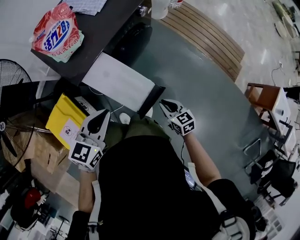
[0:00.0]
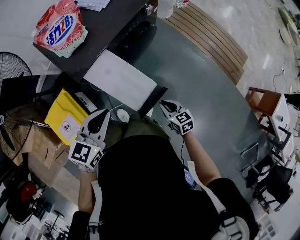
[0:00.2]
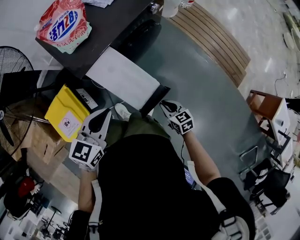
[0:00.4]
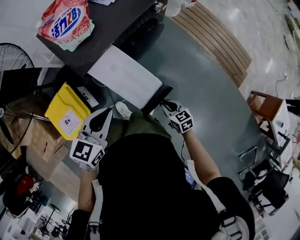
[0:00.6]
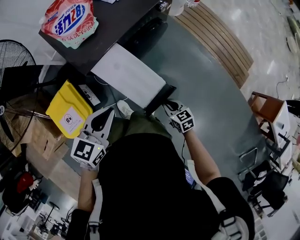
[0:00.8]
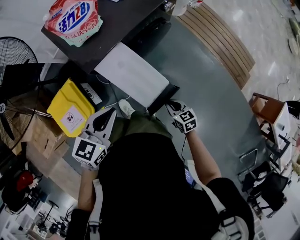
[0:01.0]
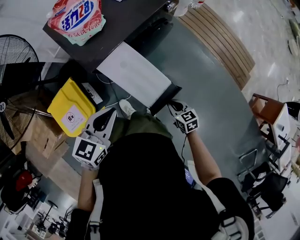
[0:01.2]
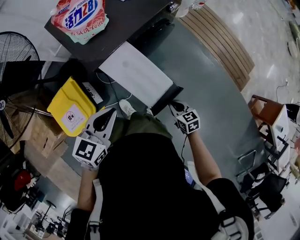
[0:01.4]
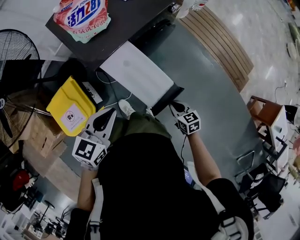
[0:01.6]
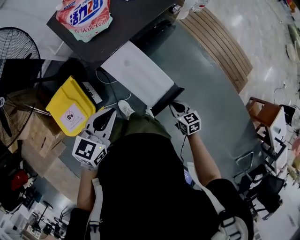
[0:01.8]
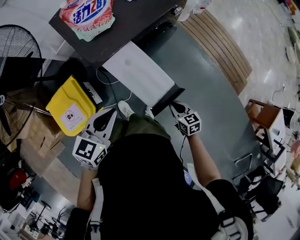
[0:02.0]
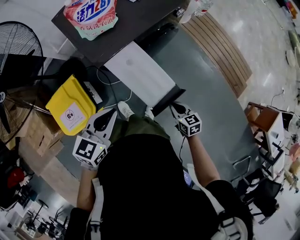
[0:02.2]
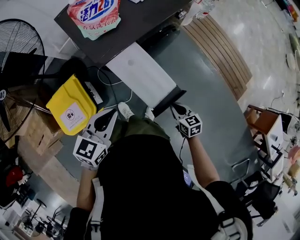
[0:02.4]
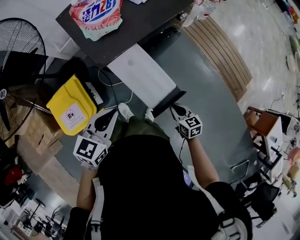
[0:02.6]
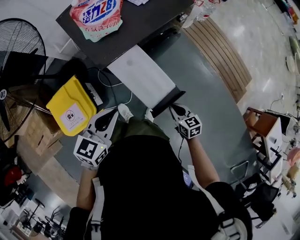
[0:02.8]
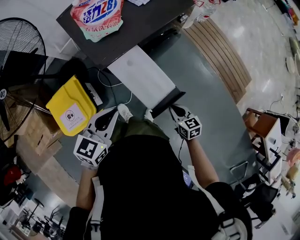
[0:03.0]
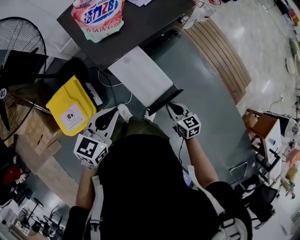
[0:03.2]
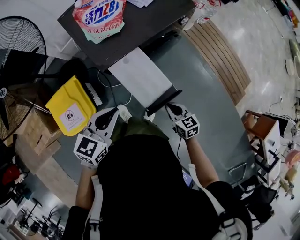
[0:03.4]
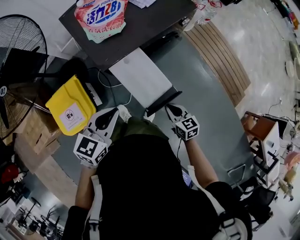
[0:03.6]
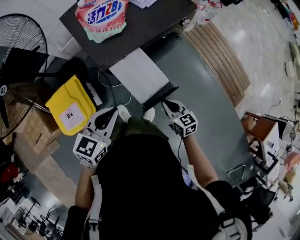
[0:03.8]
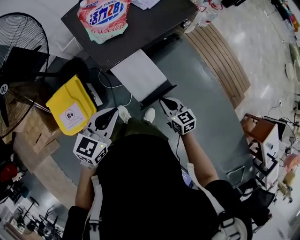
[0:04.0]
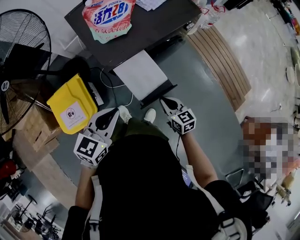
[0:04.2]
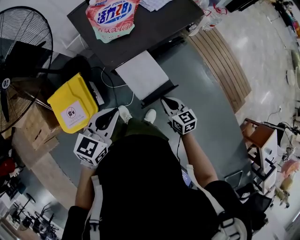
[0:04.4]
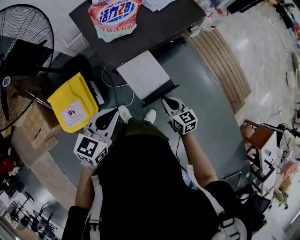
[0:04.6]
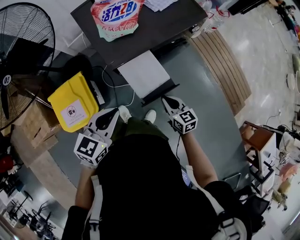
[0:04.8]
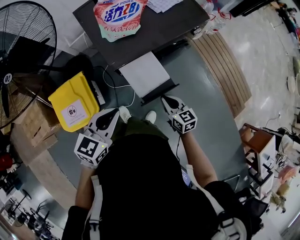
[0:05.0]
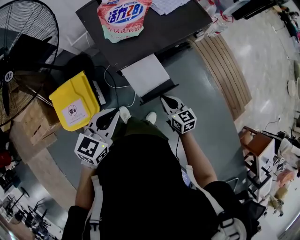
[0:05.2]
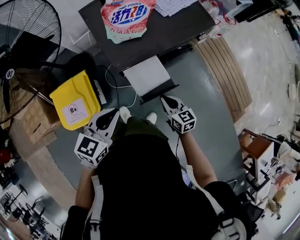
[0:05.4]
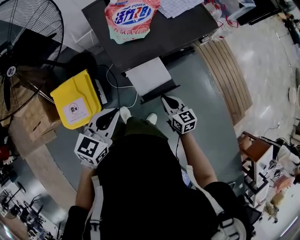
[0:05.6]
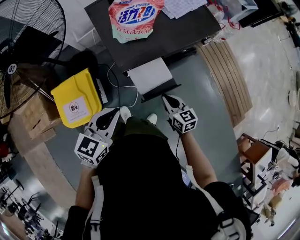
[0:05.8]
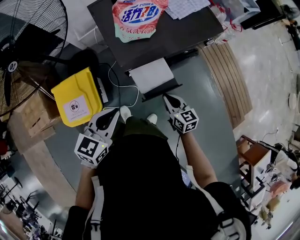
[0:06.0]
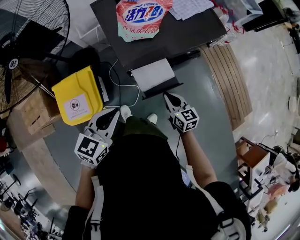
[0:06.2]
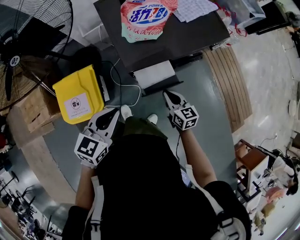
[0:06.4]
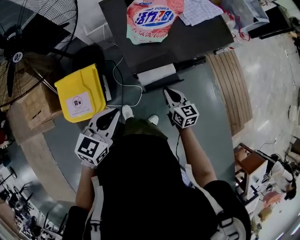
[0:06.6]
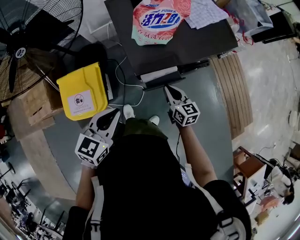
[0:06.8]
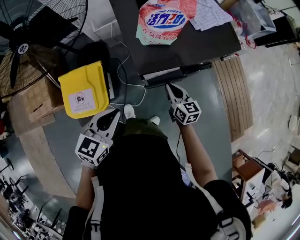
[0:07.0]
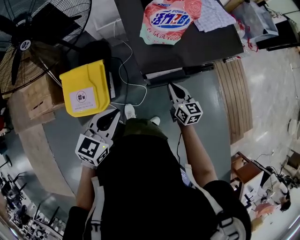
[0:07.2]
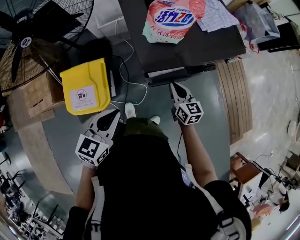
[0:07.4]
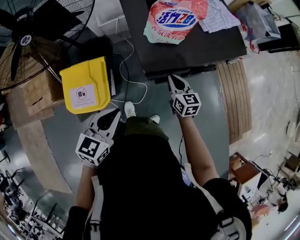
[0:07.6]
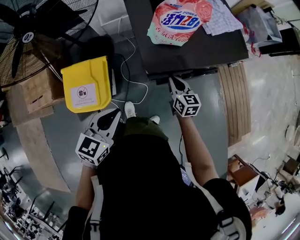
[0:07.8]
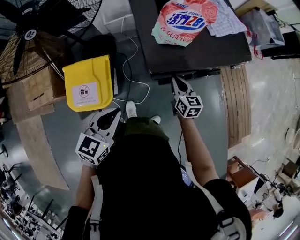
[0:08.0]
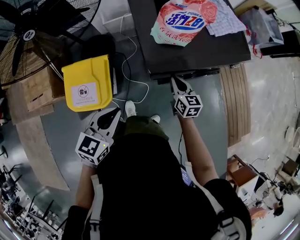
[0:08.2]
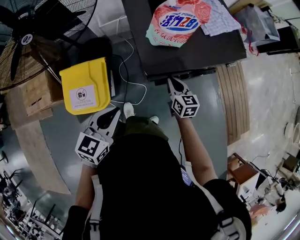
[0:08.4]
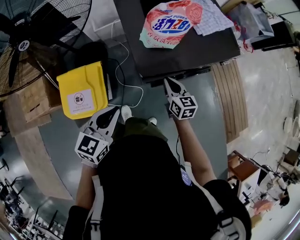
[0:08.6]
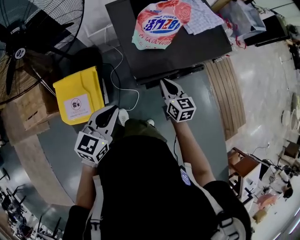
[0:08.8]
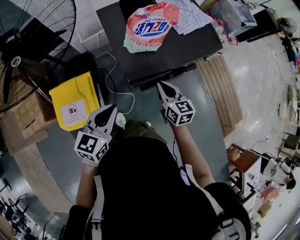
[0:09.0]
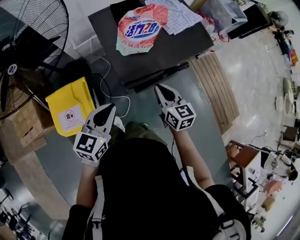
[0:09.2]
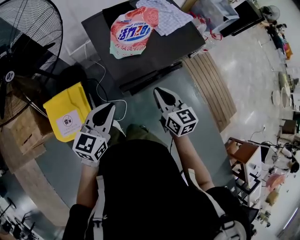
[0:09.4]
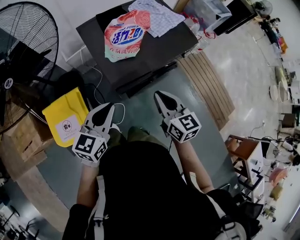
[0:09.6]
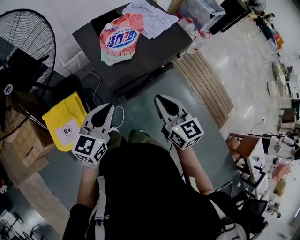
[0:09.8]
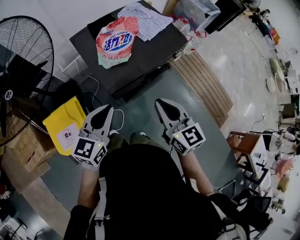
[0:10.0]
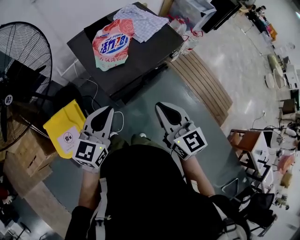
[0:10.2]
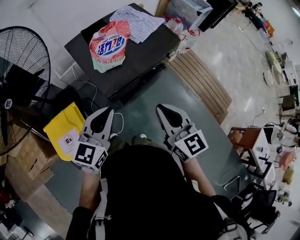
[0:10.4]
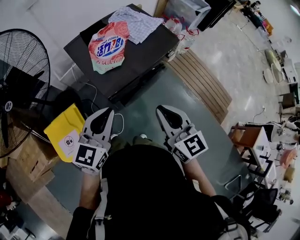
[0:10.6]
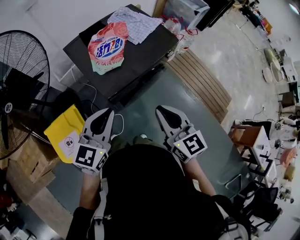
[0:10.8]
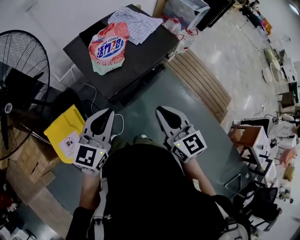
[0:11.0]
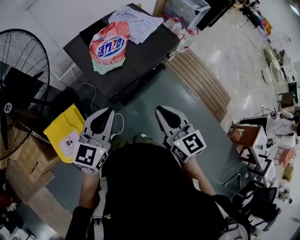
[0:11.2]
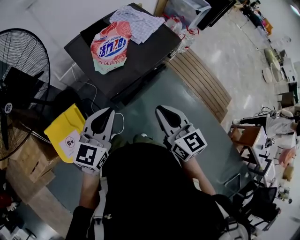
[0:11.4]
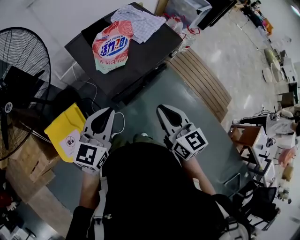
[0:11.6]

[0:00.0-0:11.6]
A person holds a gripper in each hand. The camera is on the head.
0:00.0 to 0:01.4: The right gripper is displaced downward by approximately 5 cm. The left gripper goes about 5 cm to the left.
0:01.4 to 0:02.8: There are only small adjustments of the grippers.
0:02.8 to 0:04.4: The right gripper goes approximately 10 cm forward and to the left.
0:04.4 to 0:05.8: The right gripper goes roughly 5 cm forward.
0:05.8 to 0:07.2: The right gripper travels forward and to the left by about 10 cm. The left gripper heads to the left, covering about 5 cm.
0:07.2 to 0:08.8: The right gripper changes place by approximately 5 cm.
0:08.8 to 0:10.2: The right gripper moves upward and backward, about 25 cm. The left gripper goes approximately 10 cm upward and to the right.
0:10.2 to 0:11.6: The grippers make only small movements.

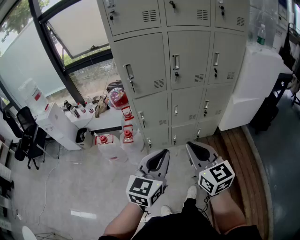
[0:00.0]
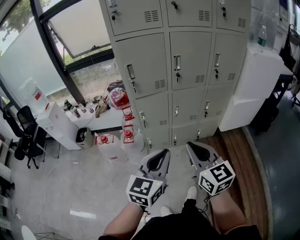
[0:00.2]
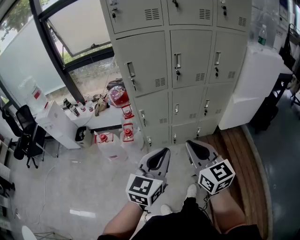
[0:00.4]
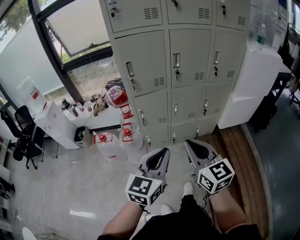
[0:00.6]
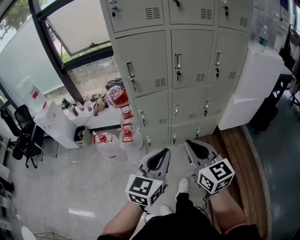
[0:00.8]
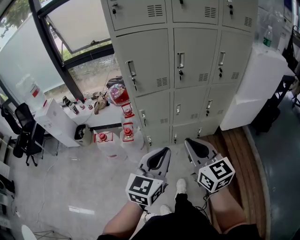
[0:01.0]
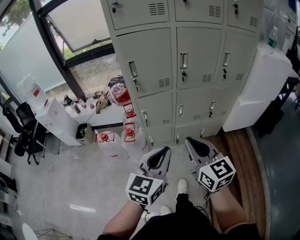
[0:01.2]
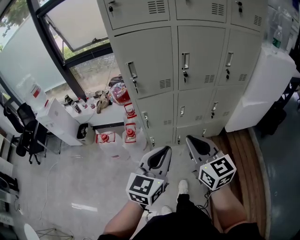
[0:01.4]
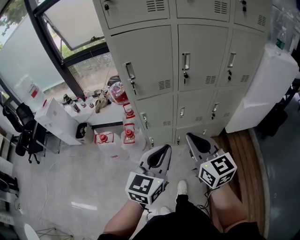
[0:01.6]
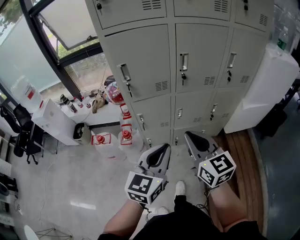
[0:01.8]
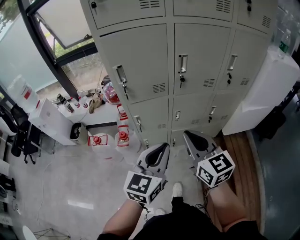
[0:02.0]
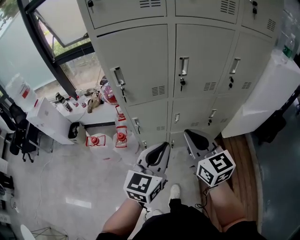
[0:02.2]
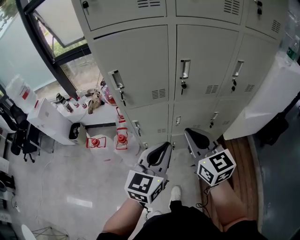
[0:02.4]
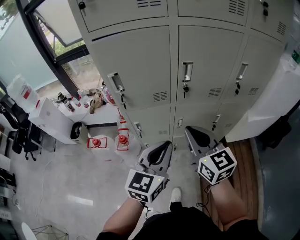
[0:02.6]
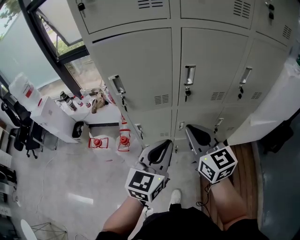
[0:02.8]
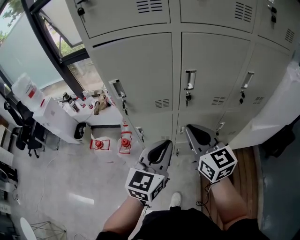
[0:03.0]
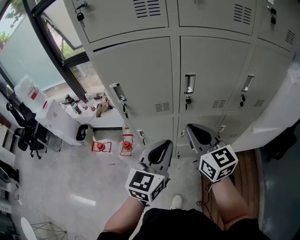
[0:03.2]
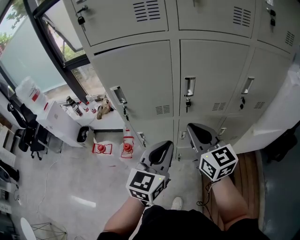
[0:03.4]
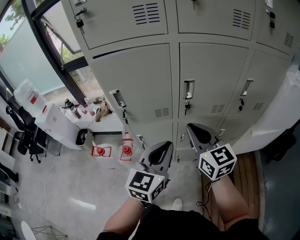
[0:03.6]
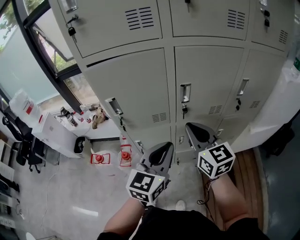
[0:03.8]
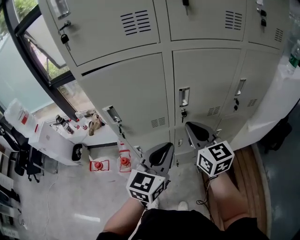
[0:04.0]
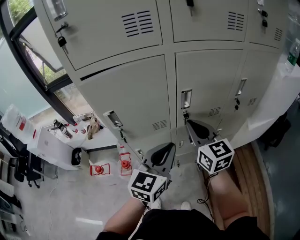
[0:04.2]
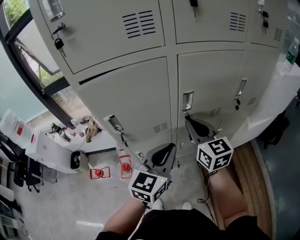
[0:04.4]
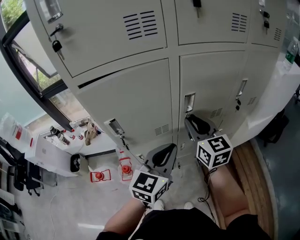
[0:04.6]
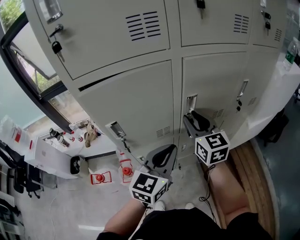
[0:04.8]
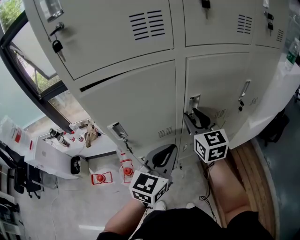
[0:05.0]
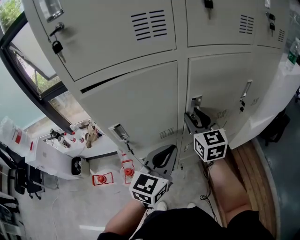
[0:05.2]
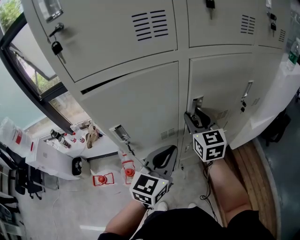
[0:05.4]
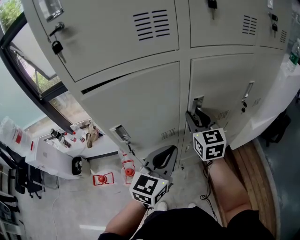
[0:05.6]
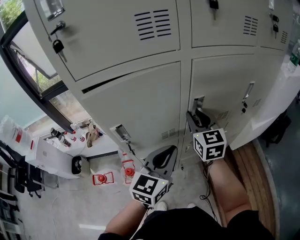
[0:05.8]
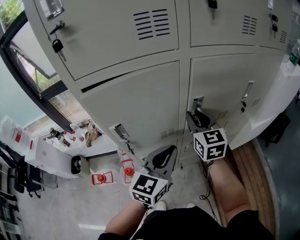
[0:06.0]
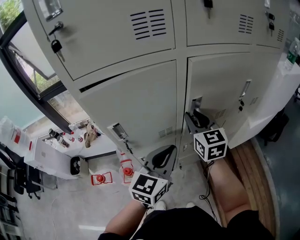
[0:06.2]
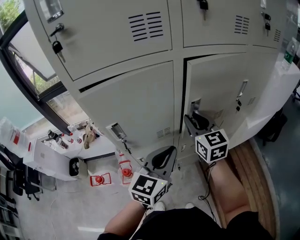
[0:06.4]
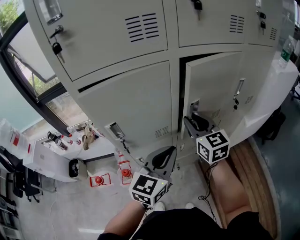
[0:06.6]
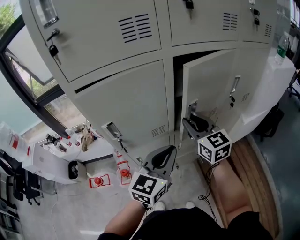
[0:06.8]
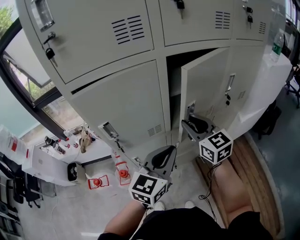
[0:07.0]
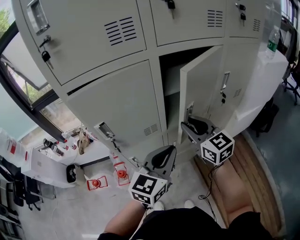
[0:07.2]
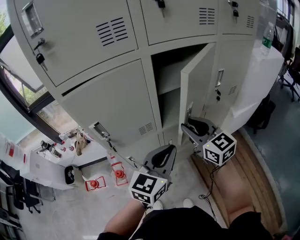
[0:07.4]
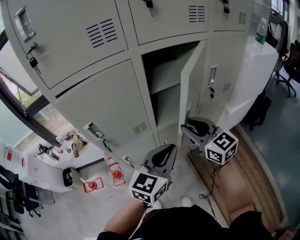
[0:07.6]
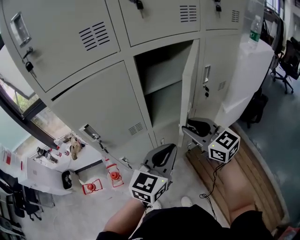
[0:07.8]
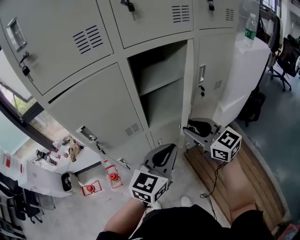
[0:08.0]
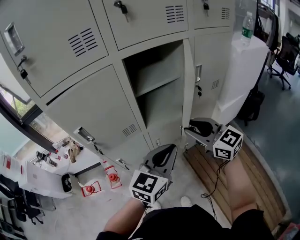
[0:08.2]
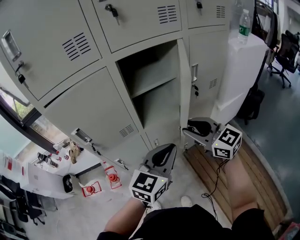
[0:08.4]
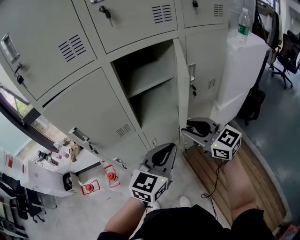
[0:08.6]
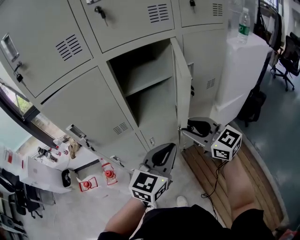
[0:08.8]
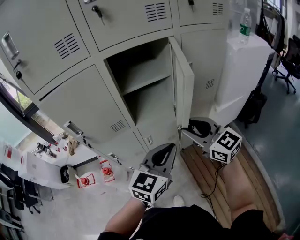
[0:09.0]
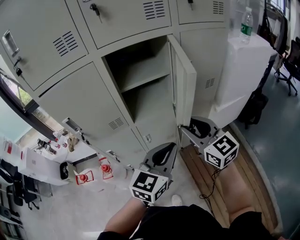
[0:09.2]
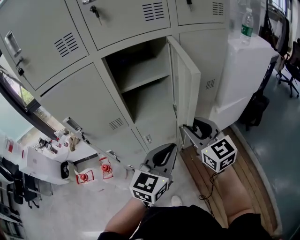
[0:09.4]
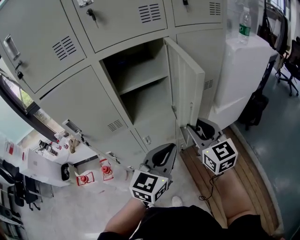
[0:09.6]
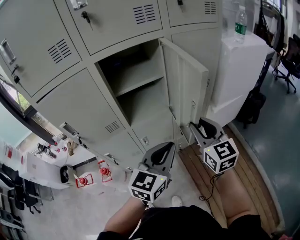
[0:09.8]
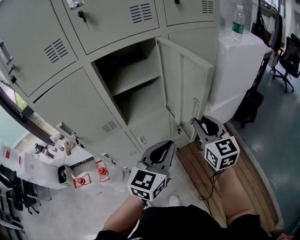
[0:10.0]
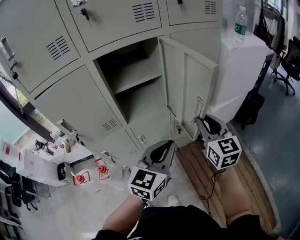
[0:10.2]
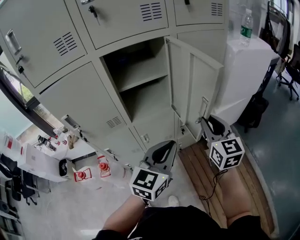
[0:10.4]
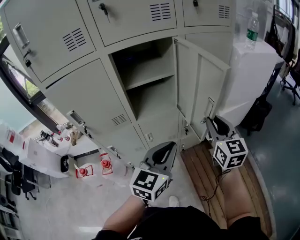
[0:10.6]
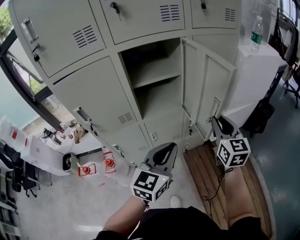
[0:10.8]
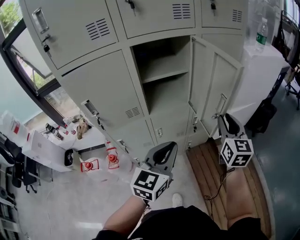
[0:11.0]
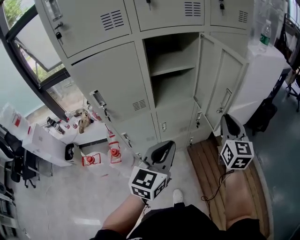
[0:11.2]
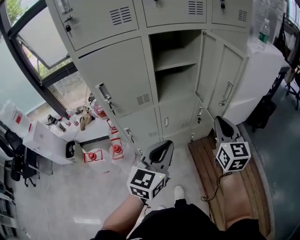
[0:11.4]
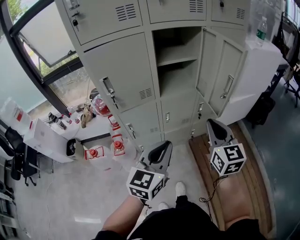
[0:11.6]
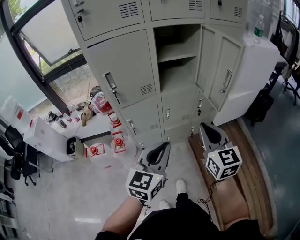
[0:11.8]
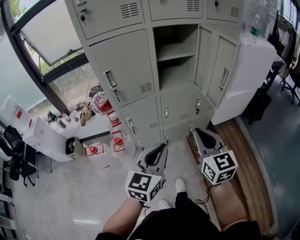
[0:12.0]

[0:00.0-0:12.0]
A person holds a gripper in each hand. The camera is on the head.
0:00.0 to 0:01.6: The two grippers go some 10 cm forward.
0:01.6 to 0:03.0: The grippers both shift forward by some 20 cm.
0:03.0 to 0:04.4: Both grippers travel together forward, some 10 cm.
0:04.4 to 0:06.0: The right gripper is displaced forward by roughly 5 cm, and opens up.
0:06.0 to 0:07.6: The left gripper heads to the right, covering roughly 10 cm; the right gripper heads backward and to the right, covering some 15 cm.
0:07.6 to 0:09.0: The two grippers go about 10 cm to the right.
0:09.0 to 0:10.4: The right gripper goes approximately 10 cm to the right, and rotates about 30 degrees.
0:10.4 to 0:12.0: The grippers both shift backward and to the left by about 30 cm.
